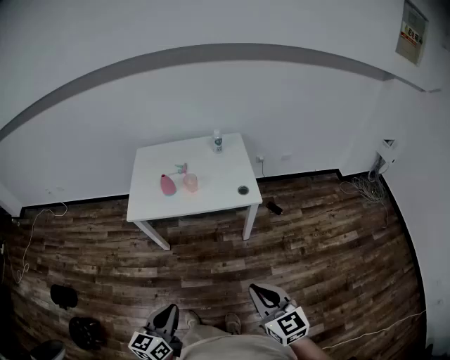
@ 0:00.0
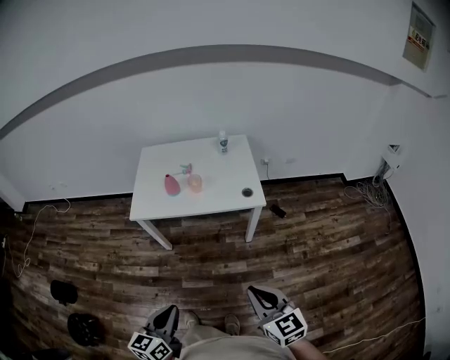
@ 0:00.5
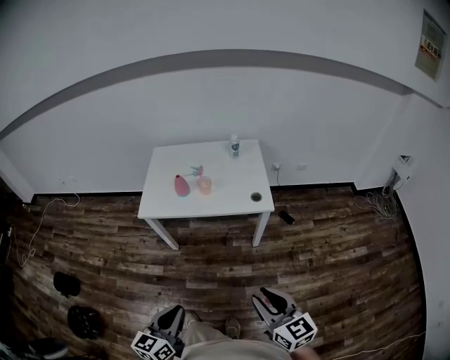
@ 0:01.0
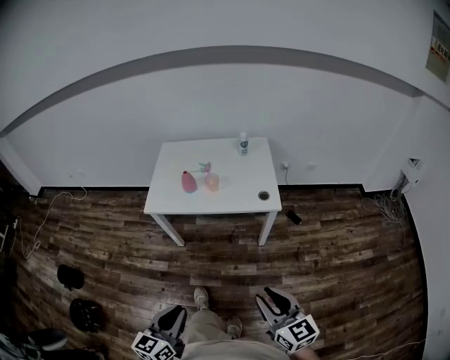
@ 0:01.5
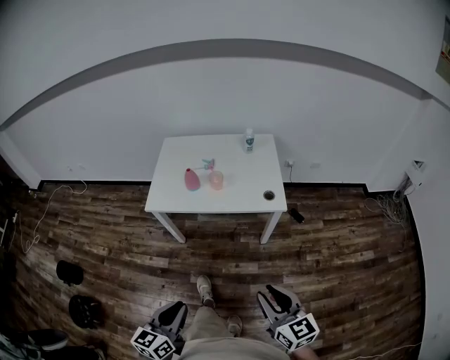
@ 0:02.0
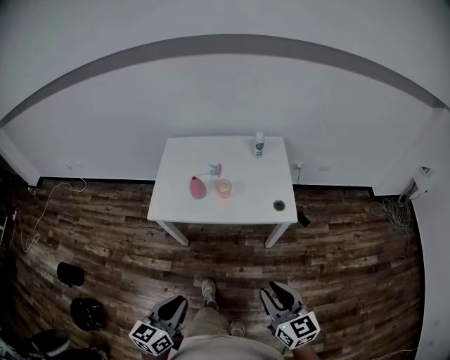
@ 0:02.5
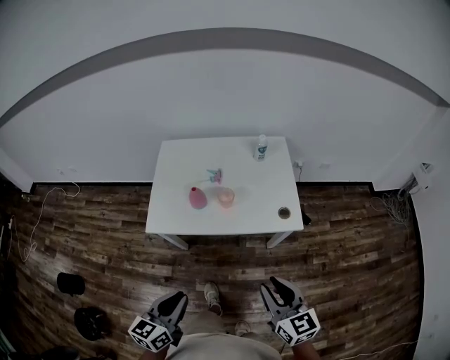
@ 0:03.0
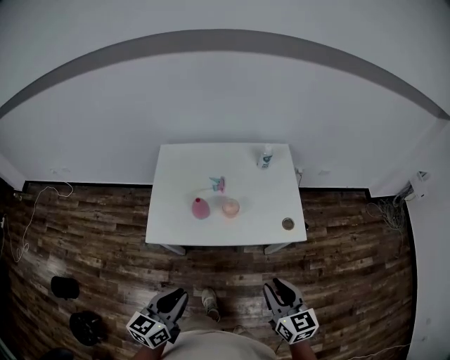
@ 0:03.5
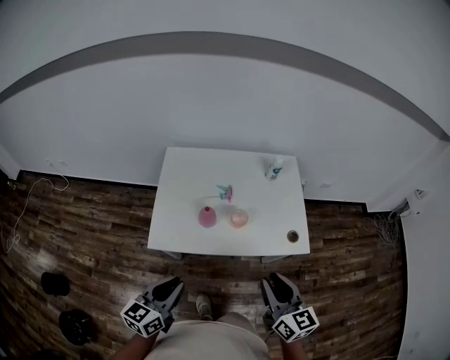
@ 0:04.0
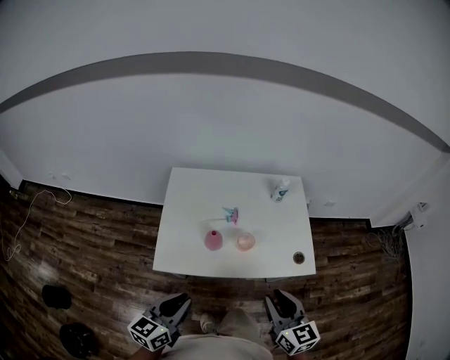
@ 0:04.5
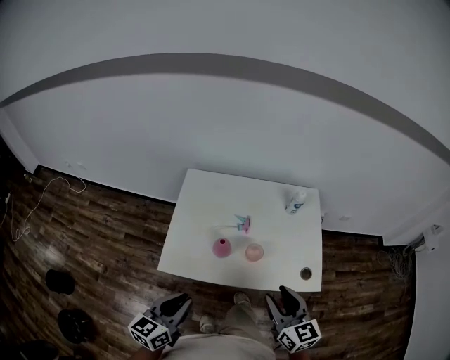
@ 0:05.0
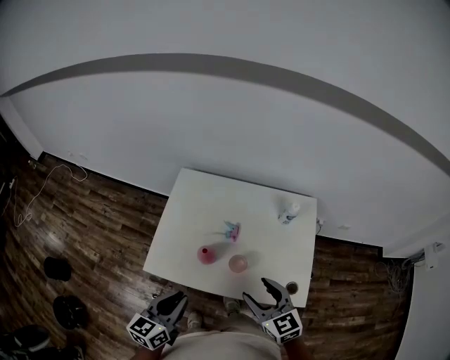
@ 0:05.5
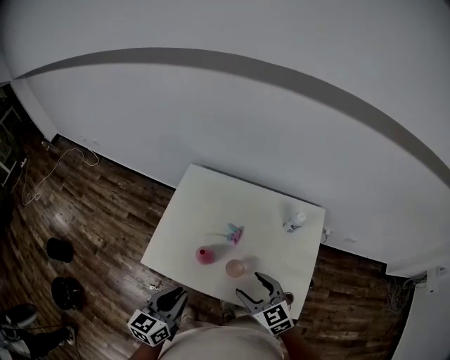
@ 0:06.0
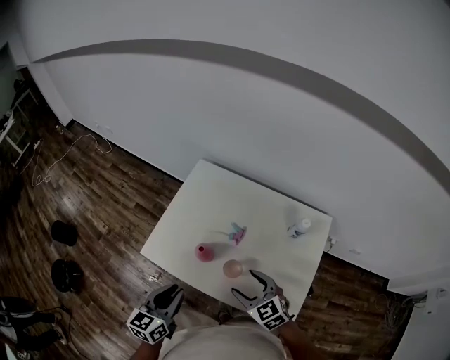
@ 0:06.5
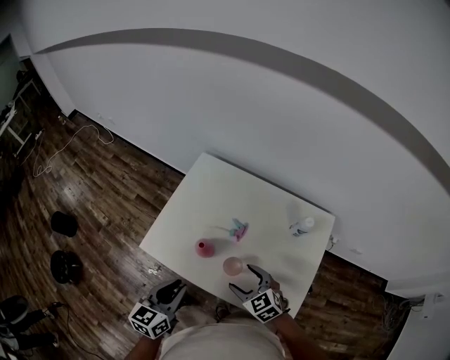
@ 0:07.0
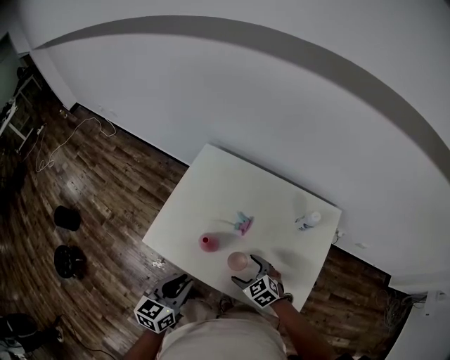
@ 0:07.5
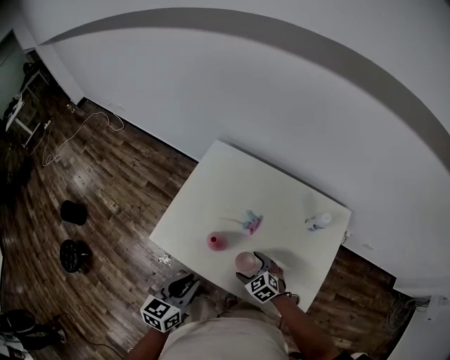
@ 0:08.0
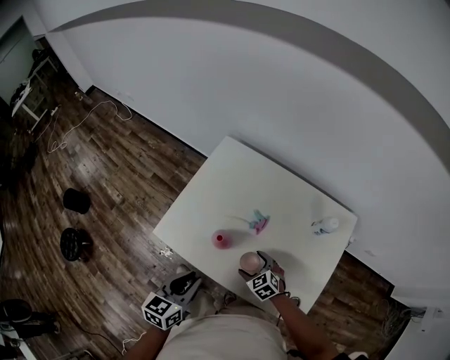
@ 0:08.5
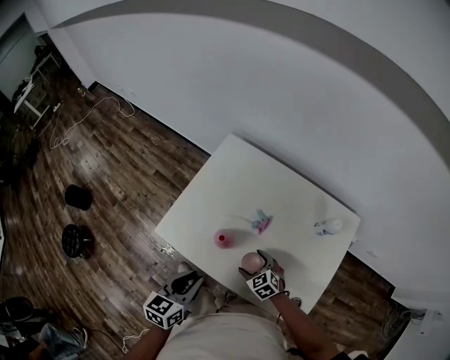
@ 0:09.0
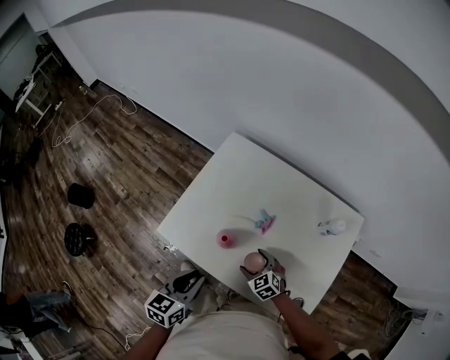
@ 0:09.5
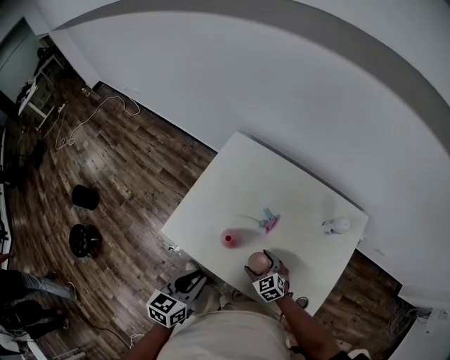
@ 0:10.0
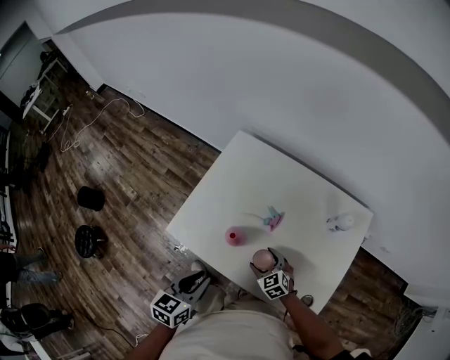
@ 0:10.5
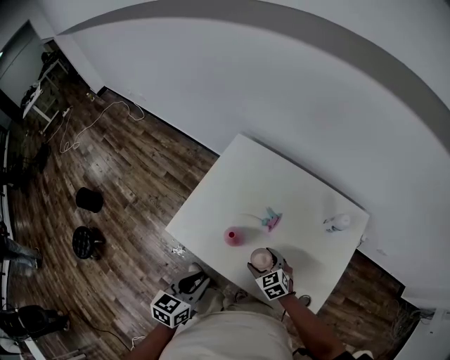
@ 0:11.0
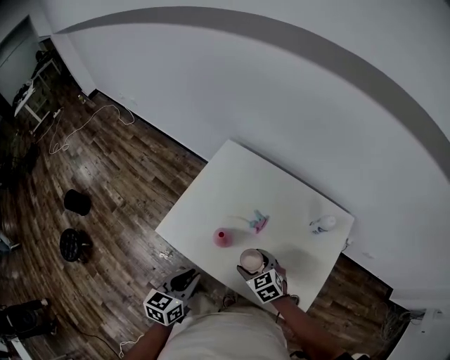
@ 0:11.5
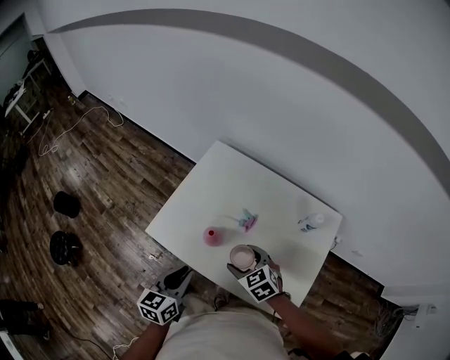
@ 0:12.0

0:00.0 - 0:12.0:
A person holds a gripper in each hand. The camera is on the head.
0:00.0 - 0:02.0: The grippers stay close to where they were, moving slightly.
0:02.0 - 0:04.0: The grippers both shift forward and to the left by approximately 40 cm.
0:04.0 - 0:06.0: The left gripper changes place by roughly 15 cm, and turns by roughly 20 degrees. Meanwhile the right gripper moves some 25 cm, swivels roughly 50 degrees, and opens its fingers.
0:06.0 - 0:08.0: The right gripper heads downward, covering approximately 20 cm, and turns by some 30 degrees; the left gripper travels downward by about 5 cm.
0:08.0 - 0:10.0: The grippers make only small movements.
0:10.0 - 0:12.0: The right gripper heads upward, covering about 15 cm.

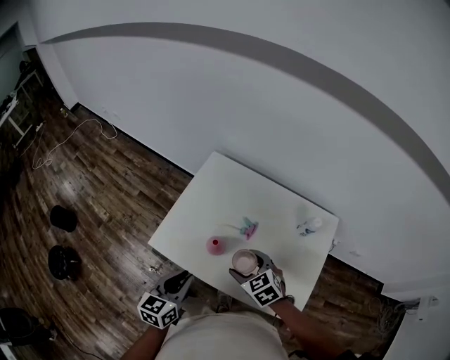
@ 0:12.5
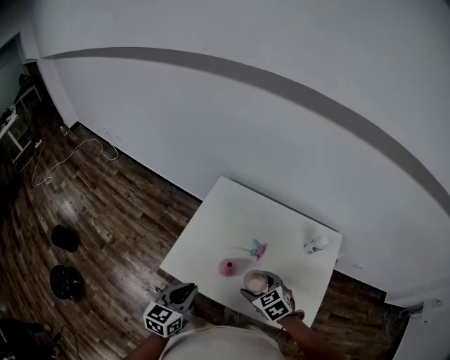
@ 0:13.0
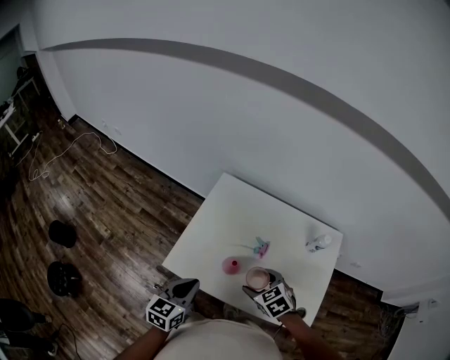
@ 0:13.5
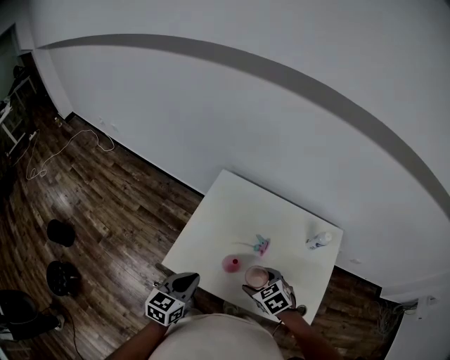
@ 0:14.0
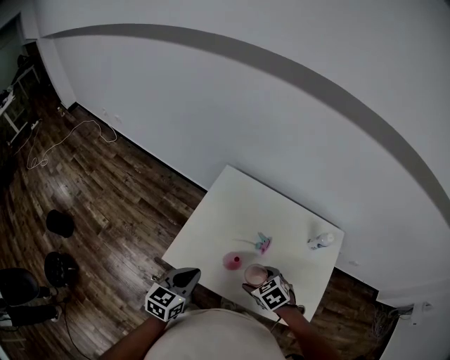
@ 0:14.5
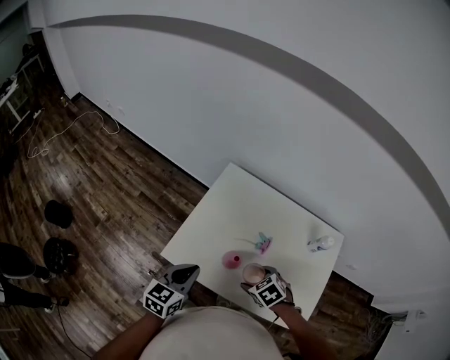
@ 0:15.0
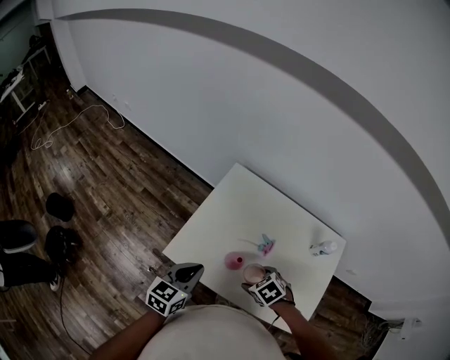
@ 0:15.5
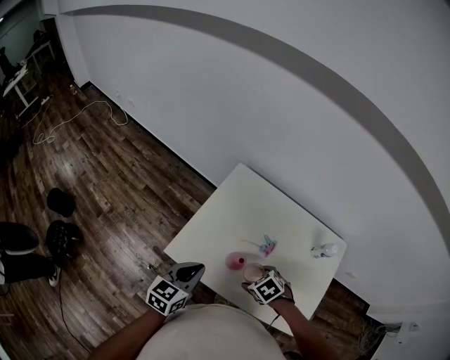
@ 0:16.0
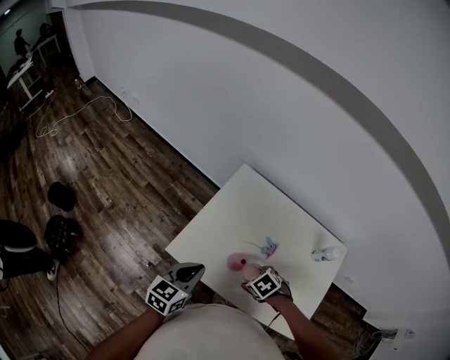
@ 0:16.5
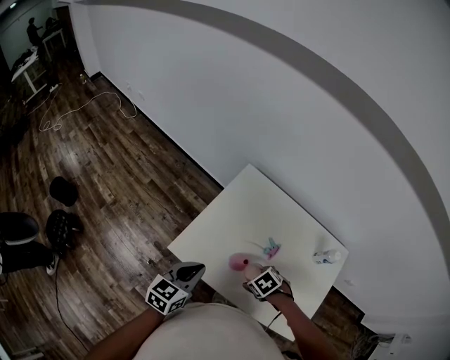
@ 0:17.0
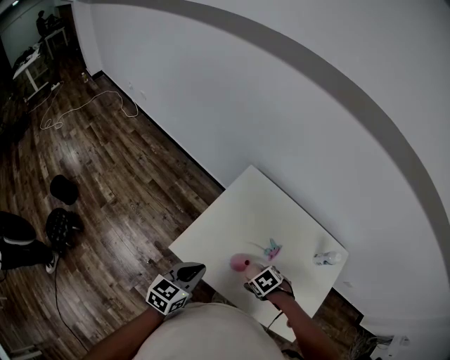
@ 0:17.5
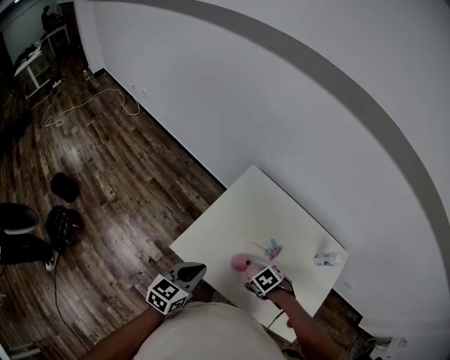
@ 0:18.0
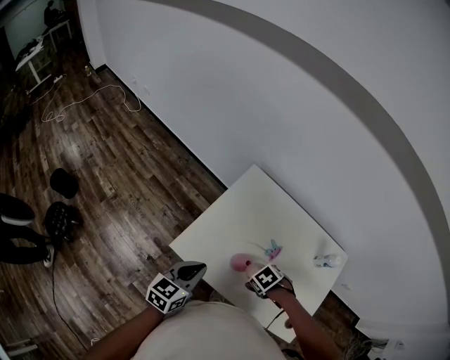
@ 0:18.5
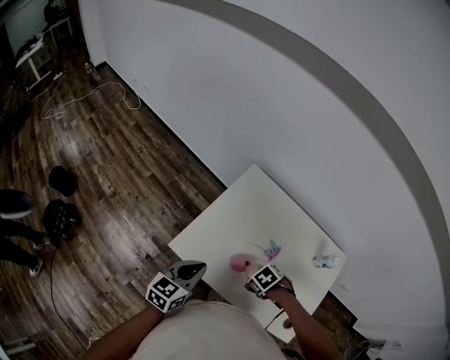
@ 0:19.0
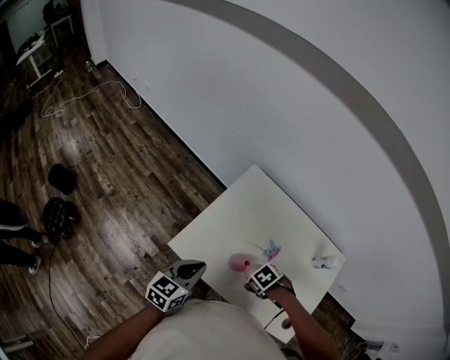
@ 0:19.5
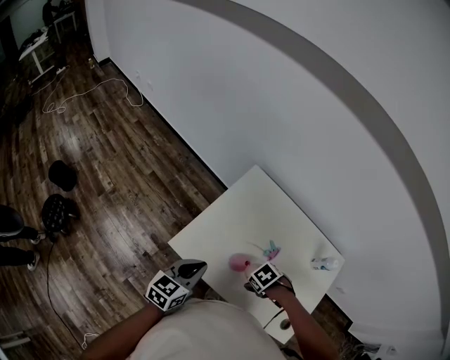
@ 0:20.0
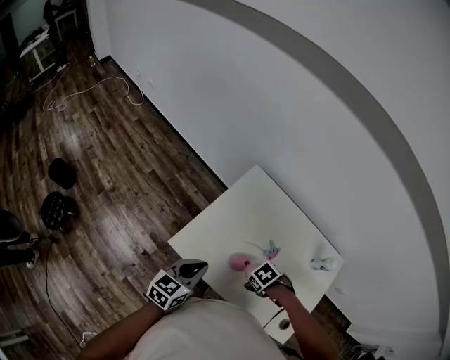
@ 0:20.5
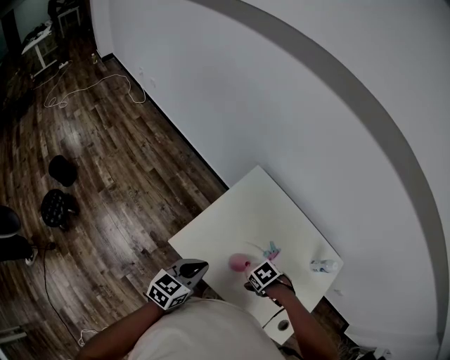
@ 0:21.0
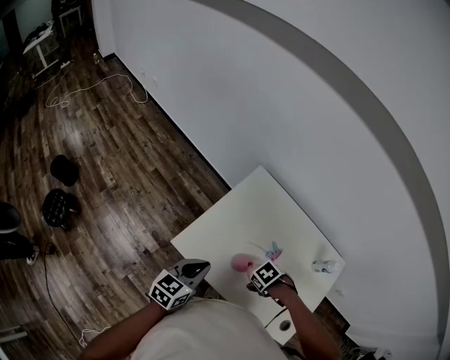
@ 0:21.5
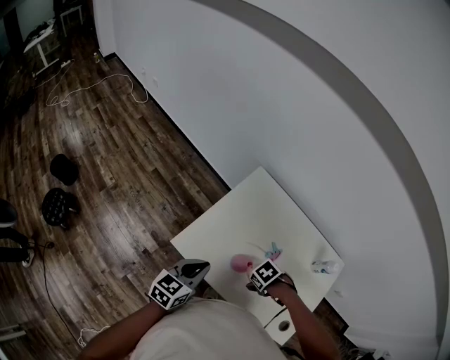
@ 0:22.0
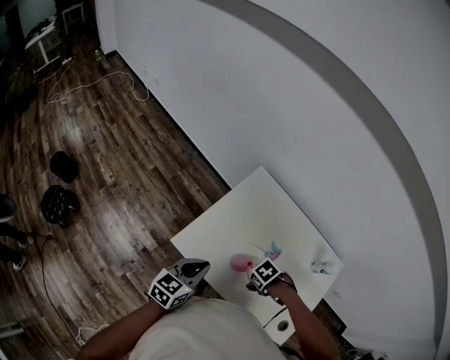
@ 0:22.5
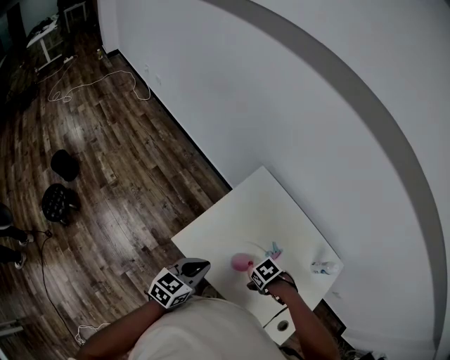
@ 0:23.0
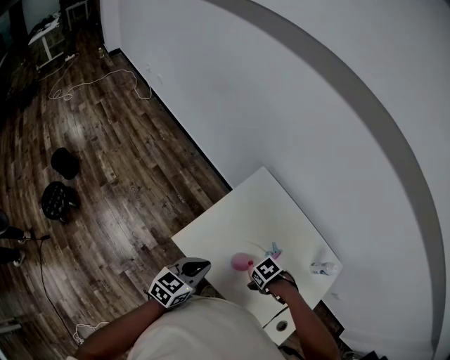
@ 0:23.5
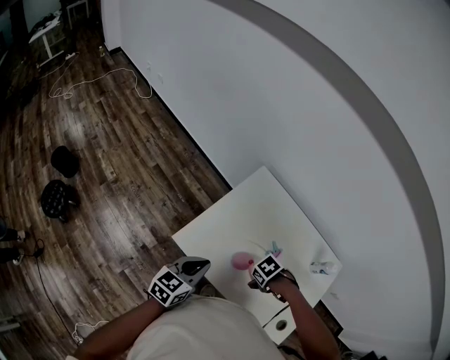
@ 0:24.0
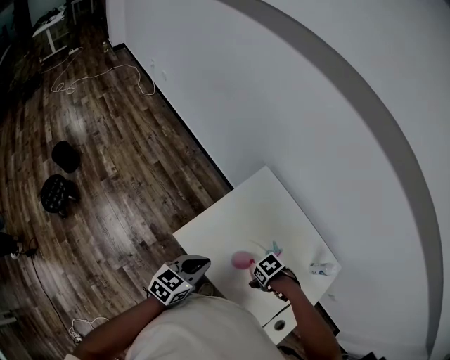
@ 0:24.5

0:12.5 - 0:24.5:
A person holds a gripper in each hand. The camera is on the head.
0:12.5 - 0:14.5: The right gripper ends up approximately 5 cm from where it was, while the left gripper travels forward and to the left by about 10 cm.
0:14.5 - 0:16.5: The right gripper is displaced downward by some 5 cm.
0:16.5 - 0:20.5: The grippers stay close to where they were, moving slightly.
0:20.5 - 0:24.5: The grippers make only small movements.

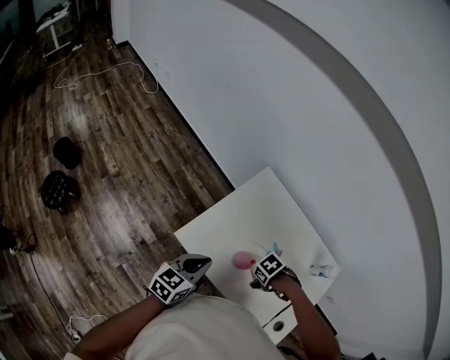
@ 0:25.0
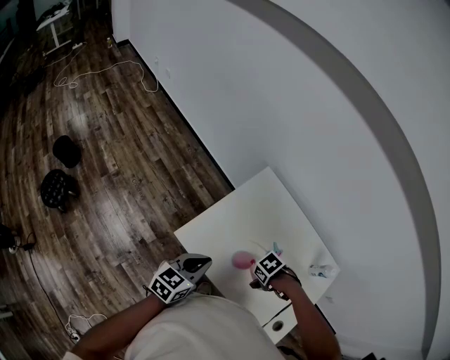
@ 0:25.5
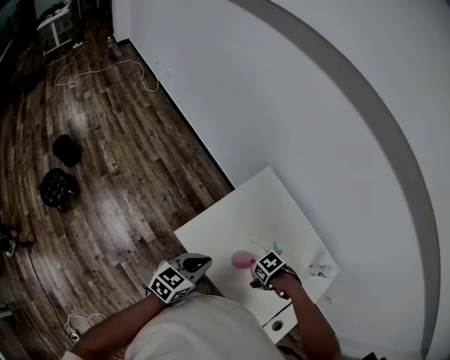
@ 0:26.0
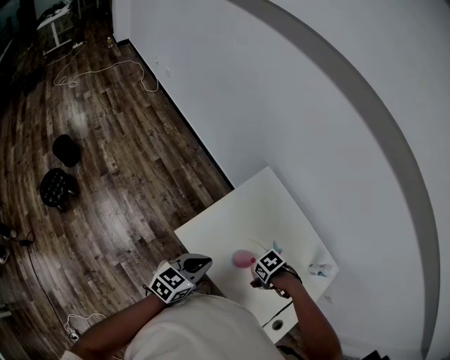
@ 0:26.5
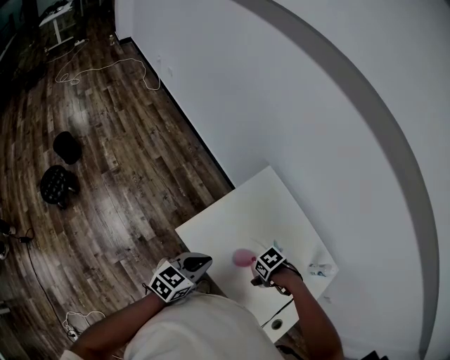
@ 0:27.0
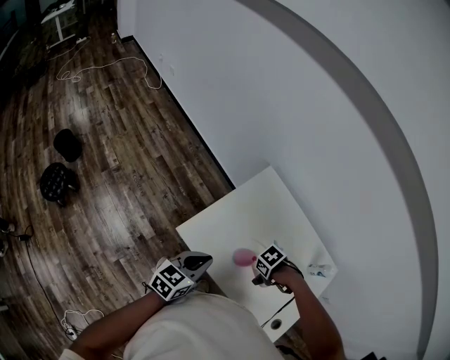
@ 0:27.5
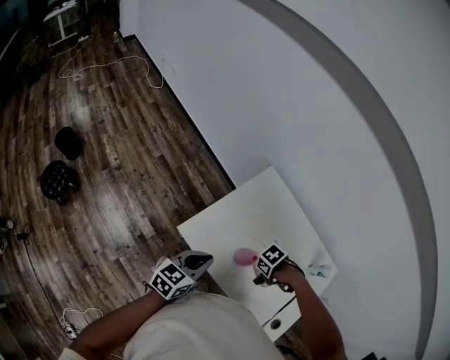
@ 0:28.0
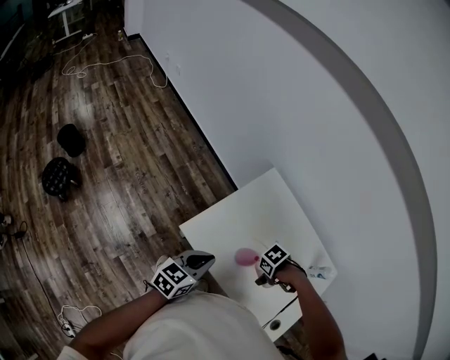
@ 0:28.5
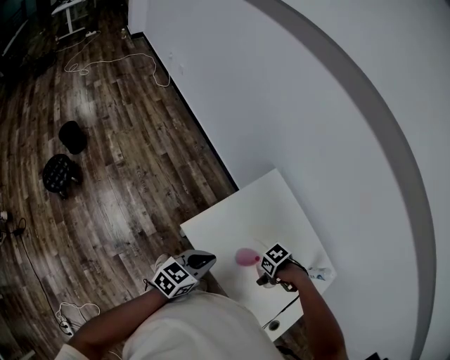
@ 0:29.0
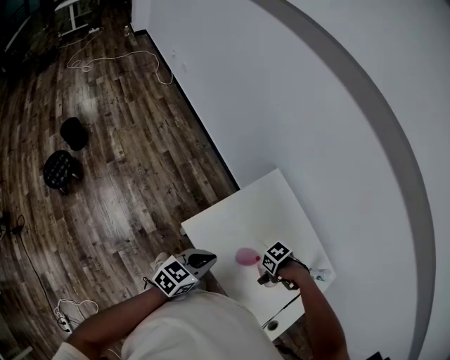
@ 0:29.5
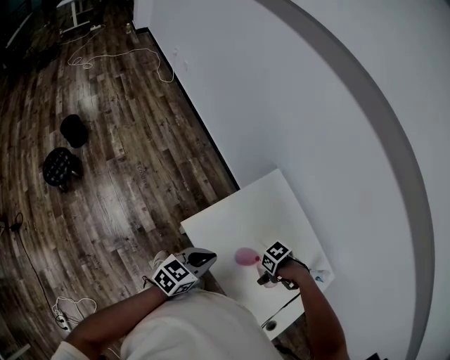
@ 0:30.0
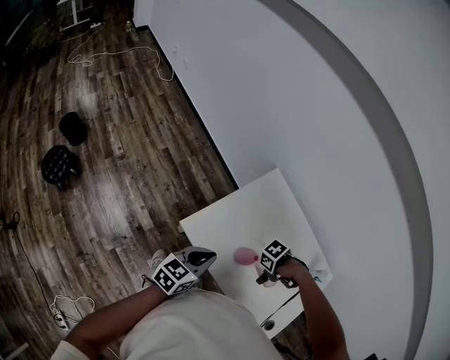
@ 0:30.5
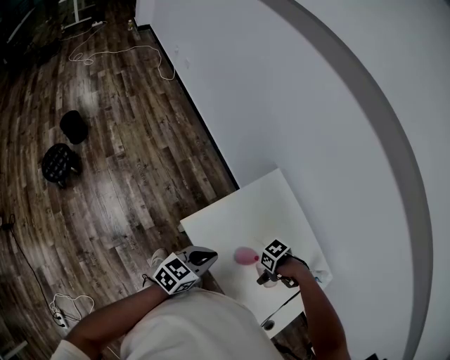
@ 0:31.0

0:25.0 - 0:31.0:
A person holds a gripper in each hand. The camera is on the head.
0:25.0 - 0:27.0: Both grippers stay put.
0:27.0 - 0:31.0: The grippers move only a little.
